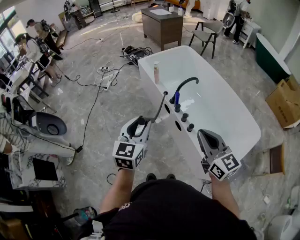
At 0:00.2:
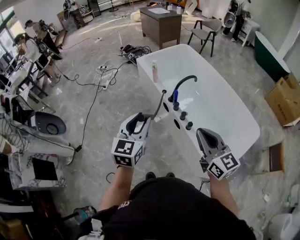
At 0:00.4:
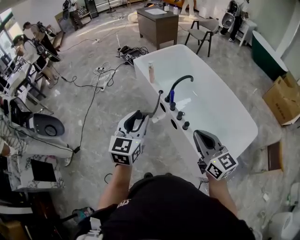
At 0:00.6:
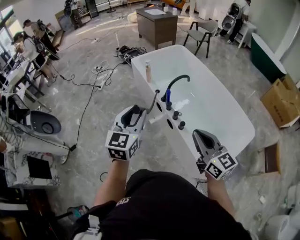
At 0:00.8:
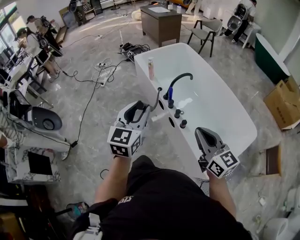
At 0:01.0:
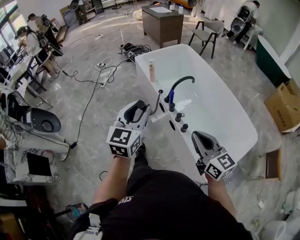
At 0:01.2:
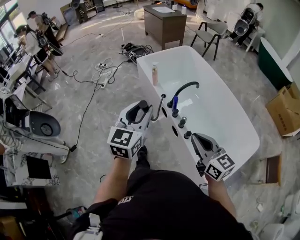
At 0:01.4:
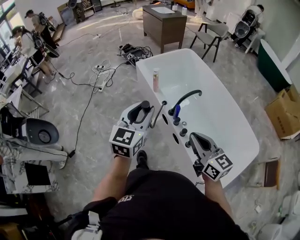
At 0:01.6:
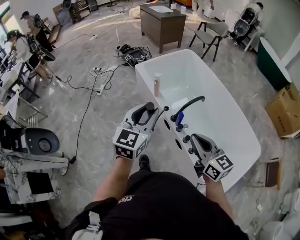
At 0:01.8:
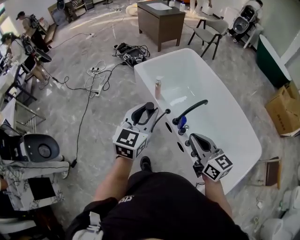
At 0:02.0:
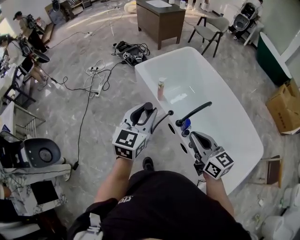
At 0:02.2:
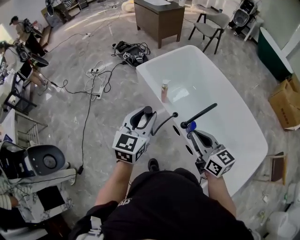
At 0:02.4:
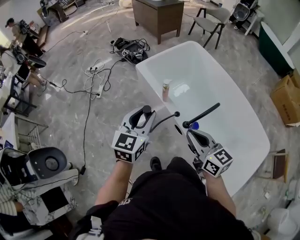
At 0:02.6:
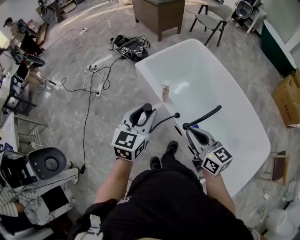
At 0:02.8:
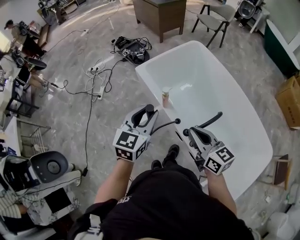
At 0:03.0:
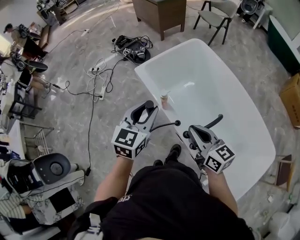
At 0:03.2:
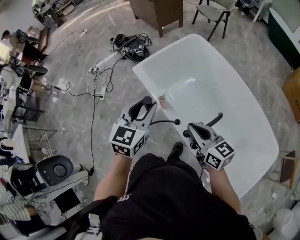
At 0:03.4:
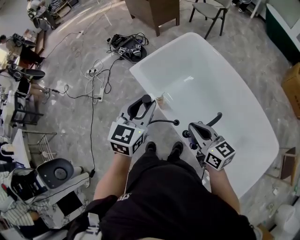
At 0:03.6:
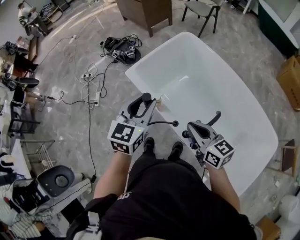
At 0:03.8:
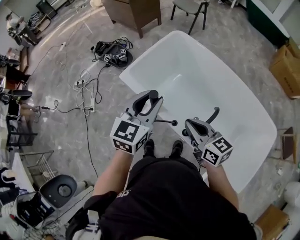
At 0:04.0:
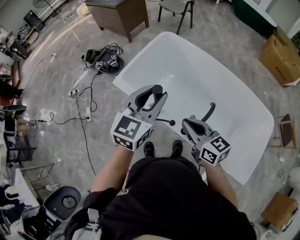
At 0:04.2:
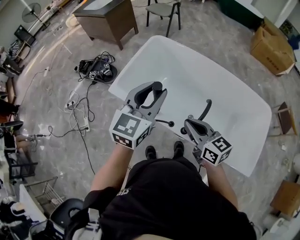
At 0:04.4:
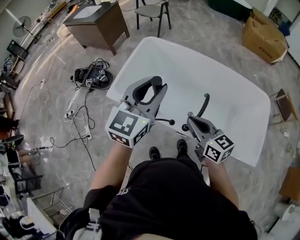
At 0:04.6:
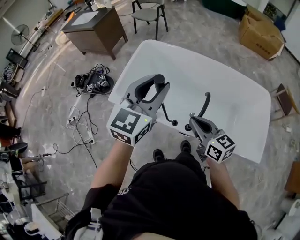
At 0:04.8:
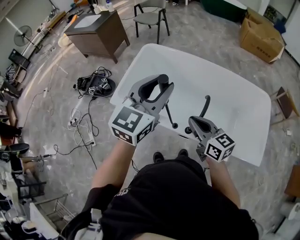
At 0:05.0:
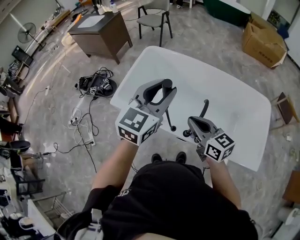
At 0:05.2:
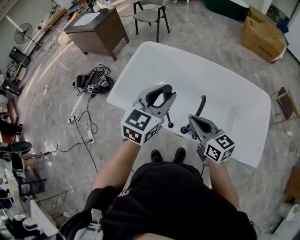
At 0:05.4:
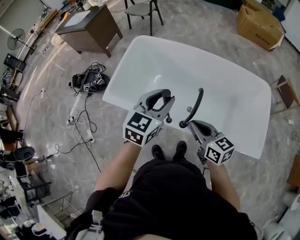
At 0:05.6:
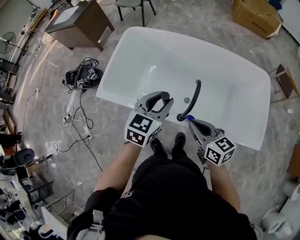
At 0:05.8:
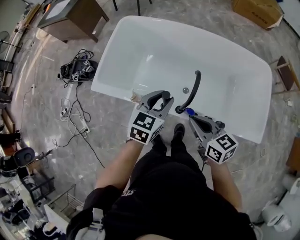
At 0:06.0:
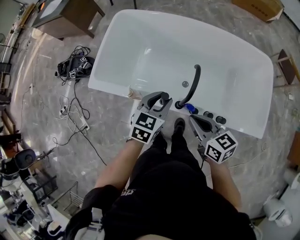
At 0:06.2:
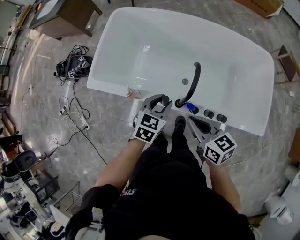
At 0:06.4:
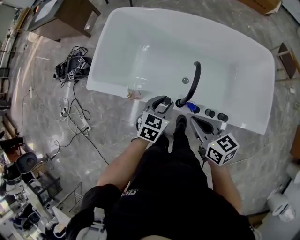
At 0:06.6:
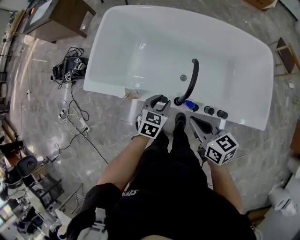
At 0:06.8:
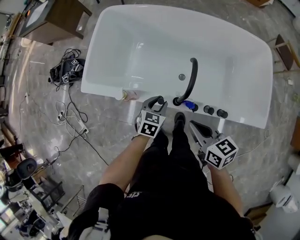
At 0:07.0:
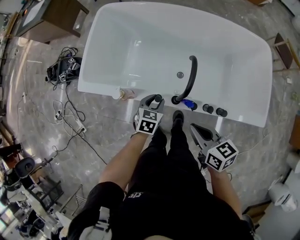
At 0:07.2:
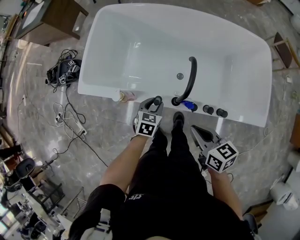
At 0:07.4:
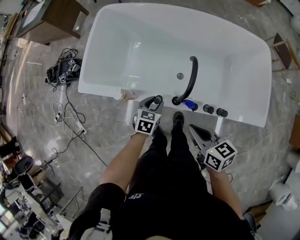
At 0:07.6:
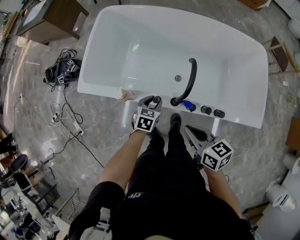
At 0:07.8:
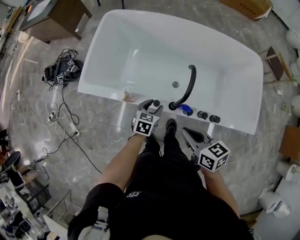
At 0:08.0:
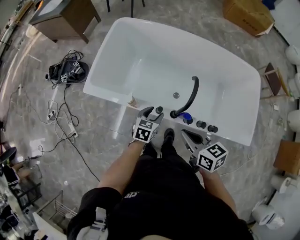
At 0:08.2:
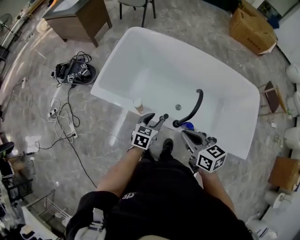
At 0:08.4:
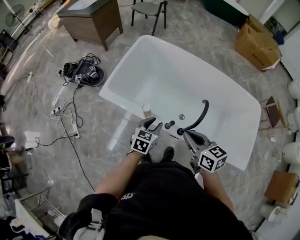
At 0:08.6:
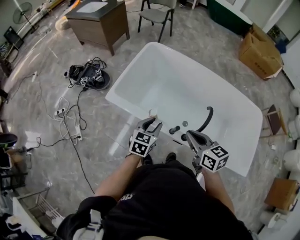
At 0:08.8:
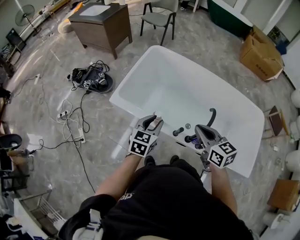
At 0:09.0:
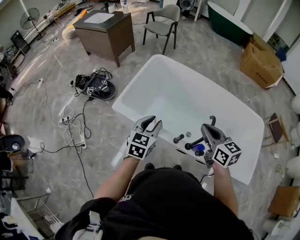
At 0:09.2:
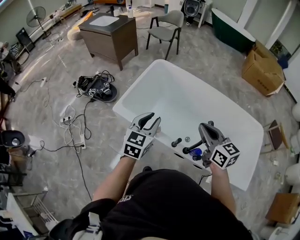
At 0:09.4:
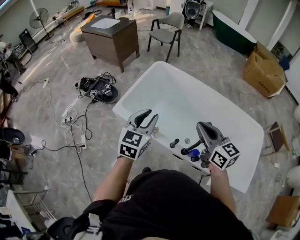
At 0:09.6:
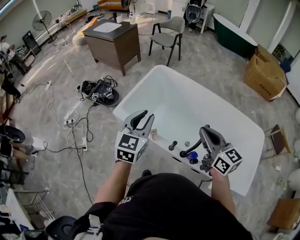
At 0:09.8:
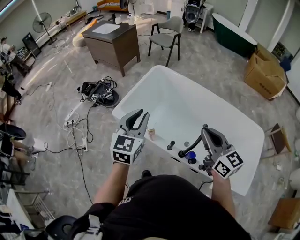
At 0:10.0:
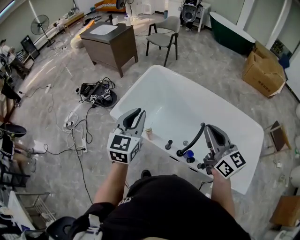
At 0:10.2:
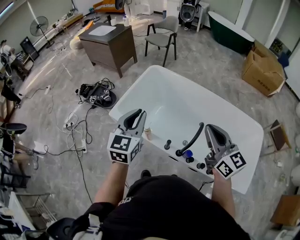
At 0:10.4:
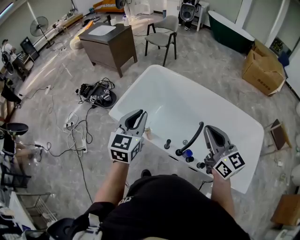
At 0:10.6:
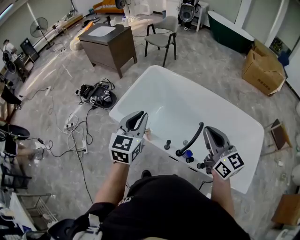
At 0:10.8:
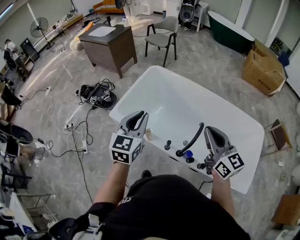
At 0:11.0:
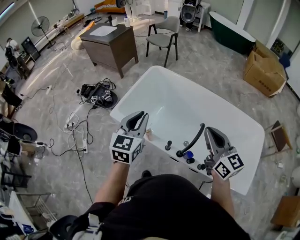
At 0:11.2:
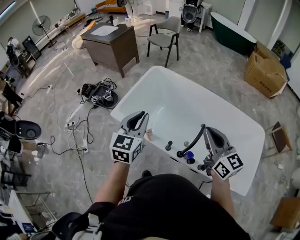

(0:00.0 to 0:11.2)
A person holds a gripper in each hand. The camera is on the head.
0:00.0 - 0:01.6: Both grippers travel together forward, about 25 cm.
0:01.6 - 0:03.2: The two grippers go approximately 30 cm forward.
0:03.2 - 0:04.8: The left gripper moves upward, some 10 cm, and rotates about 40 degrees. Meanwhile the right gripper turns by some 30 degrees.
0:04.8 - 0:06.4: The left gripper shifts roughly 35 cm downward, and tilts its fingers approximately 40 degrees downward; the right gripper is displaced downward and to the right by approximately 15 cm.
0:06.4 - 0:08.0: The left gripper goes roughly 10 cm downward and to the left, and opens its fingers. Meanwhile the right gripper shifts about 5 cm to the left.
0:08.0 - 0:09.6: The left gripper heads upward and to the left, covering about 40 cm, swivels some 40 degrees, and closes up. Meanwhile the right gripper travels upward and forward by roughly 20 cm, and turns by about 30 degrees.
0:09.6 - 0:11.2: The right gripper shifts approximately 5 cm to the right.

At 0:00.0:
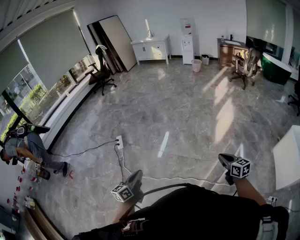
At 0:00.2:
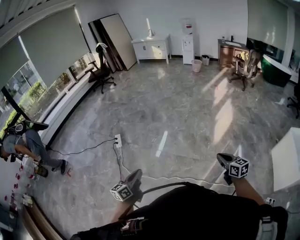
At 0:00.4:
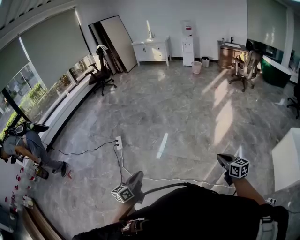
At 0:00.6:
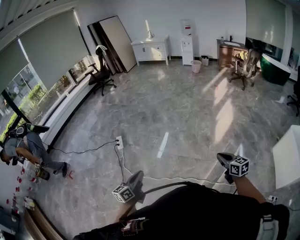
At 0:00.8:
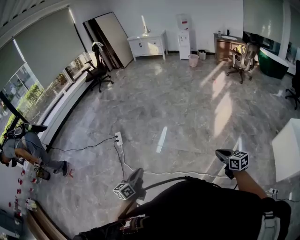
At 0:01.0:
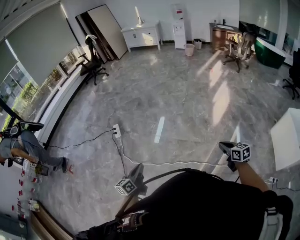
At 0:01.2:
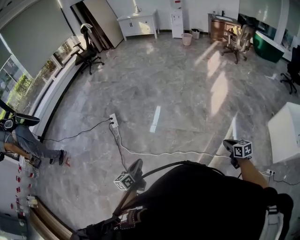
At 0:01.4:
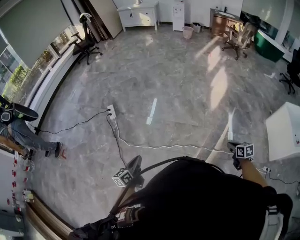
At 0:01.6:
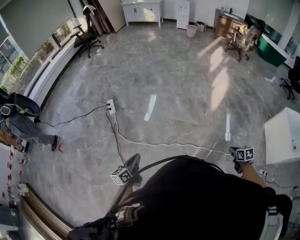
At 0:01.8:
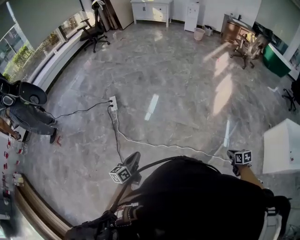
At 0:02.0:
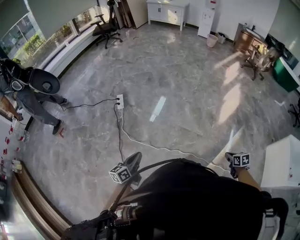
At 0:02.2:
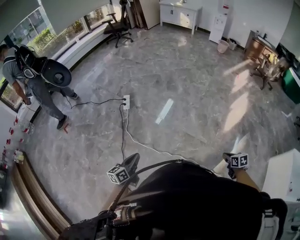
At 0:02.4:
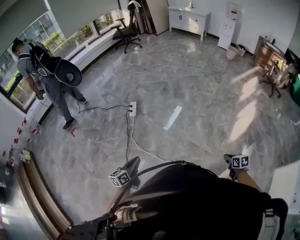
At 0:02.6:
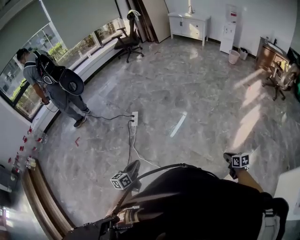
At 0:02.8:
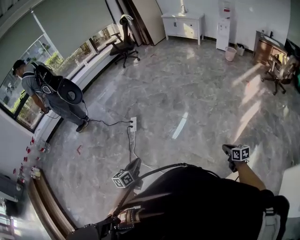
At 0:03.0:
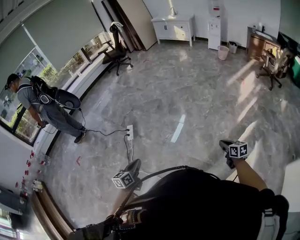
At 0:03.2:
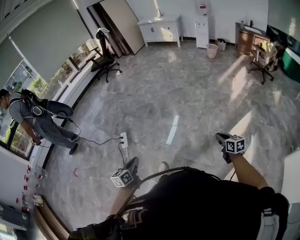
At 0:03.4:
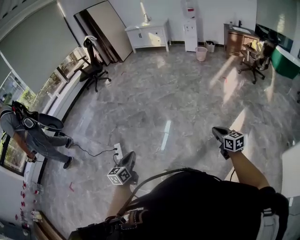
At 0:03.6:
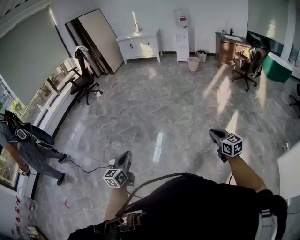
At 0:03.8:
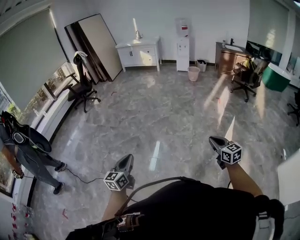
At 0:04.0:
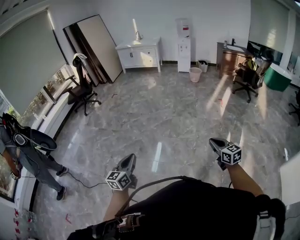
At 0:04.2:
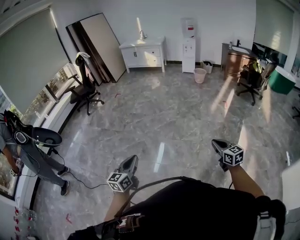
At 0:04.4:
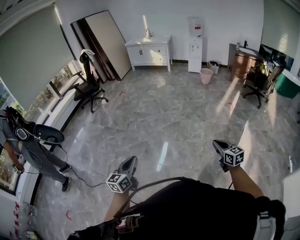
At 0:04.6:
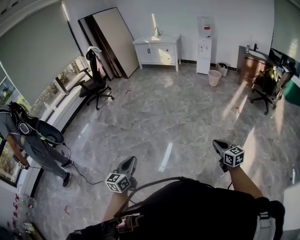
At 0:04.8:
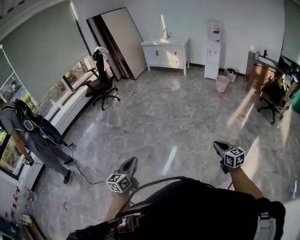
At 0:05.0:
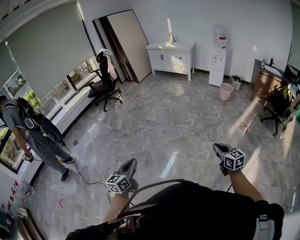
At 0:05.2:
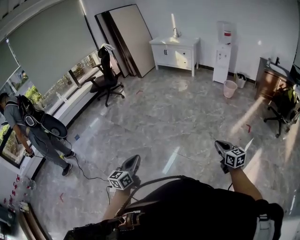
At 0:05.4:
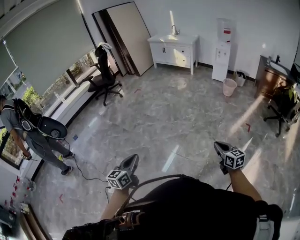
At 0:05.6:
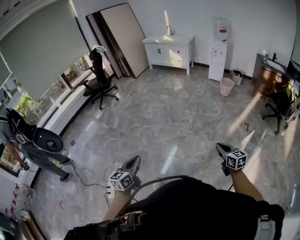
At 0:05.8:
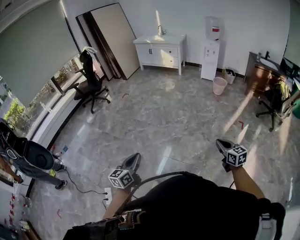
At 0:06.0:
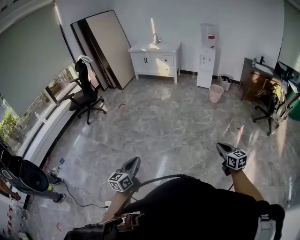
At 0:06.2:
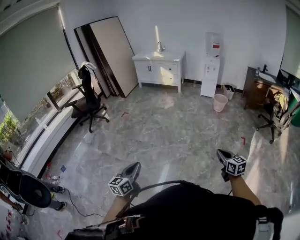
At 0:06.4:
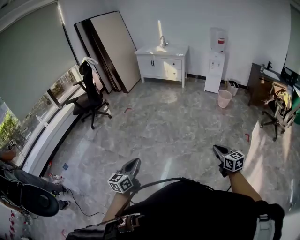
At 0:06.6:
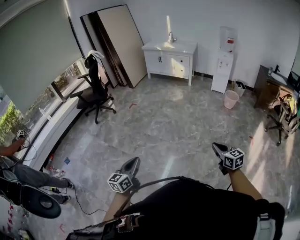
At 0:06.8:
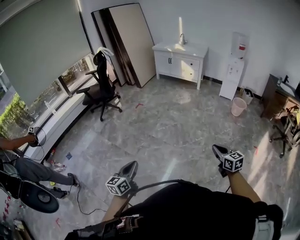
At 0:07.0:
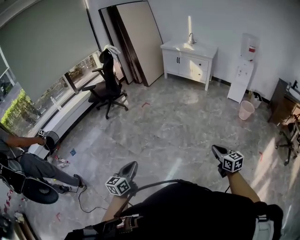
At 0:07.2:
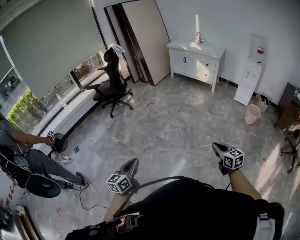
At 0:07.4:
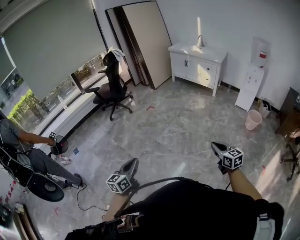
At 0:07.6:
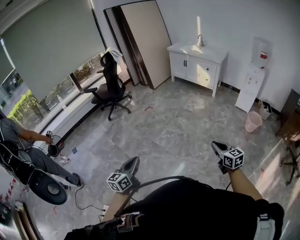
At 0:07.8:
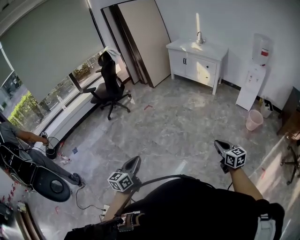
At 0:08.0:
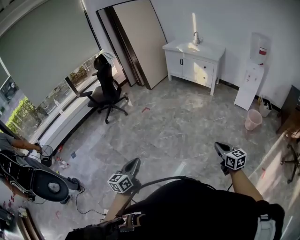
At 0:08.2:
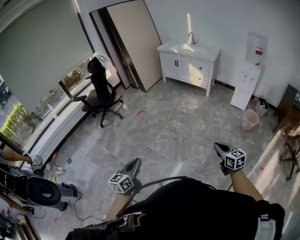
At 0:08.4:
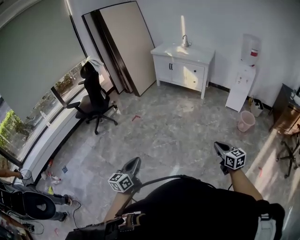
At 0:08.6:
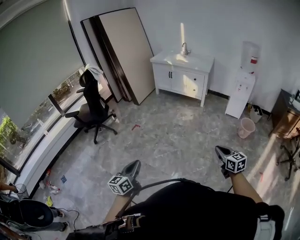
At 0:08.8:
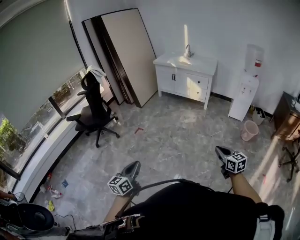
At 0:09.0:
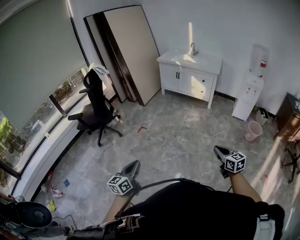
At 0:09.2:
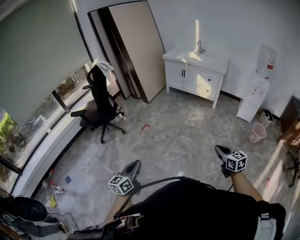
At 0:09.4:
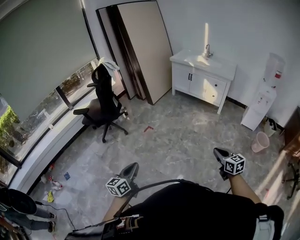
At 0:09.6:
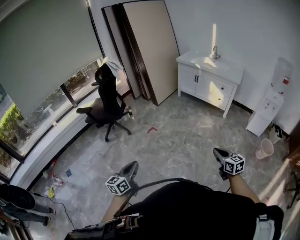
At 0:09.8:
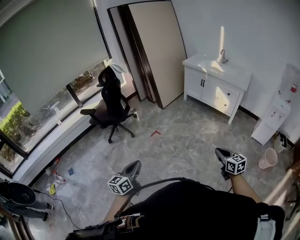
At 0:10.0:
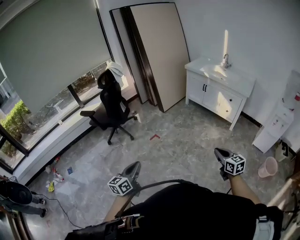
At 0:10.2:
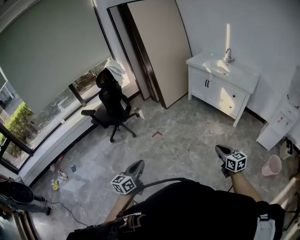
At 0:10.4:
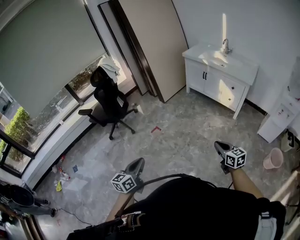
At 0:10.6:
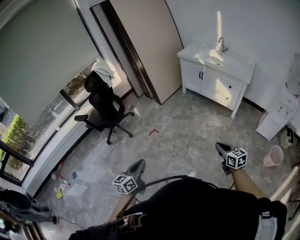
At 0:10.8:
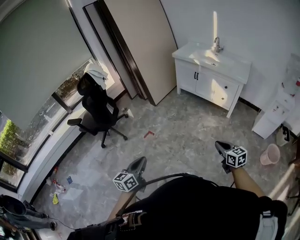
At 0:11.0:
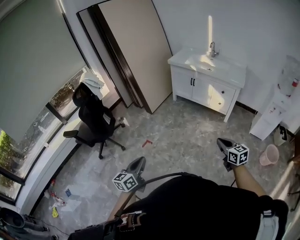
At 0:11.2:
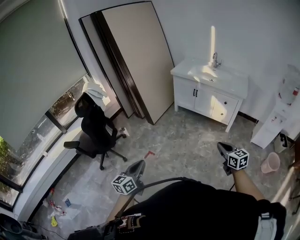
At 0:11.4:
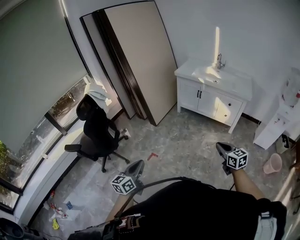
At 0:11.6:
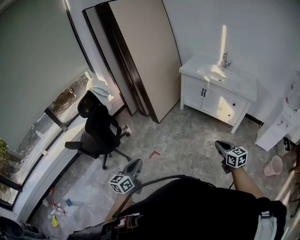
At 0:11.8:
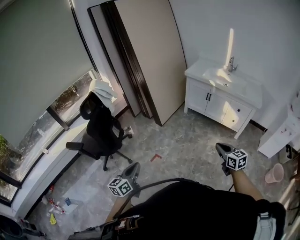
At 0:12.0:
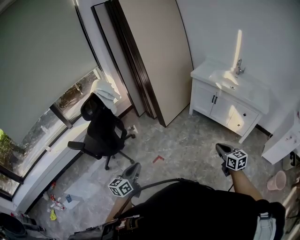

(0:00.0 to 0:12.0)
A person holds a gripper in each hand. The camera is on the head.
0:00.0 - 0:01.6: The left gripper shifts some 20 cm to the left and downward. Meanwhile the right gripper is displaced downward and backward by some 20 cm, and tilts its fingers roughly 30 degrees downward.
0:01.6 - 0:03.0: The right gripper heads forward, covering roughly 50 cm, and rotates some 30 degrees. Meanwhile the left gripper heads forward and to the right, covering roughly 30 cm.
0:03.0 - 0:04.4: The two grippers travel together, forward, about 50 cm. The right gripper changes its angle by roughly 20 degrees, while the left gripper rotates some 20 degrees.
0:04.4 - 0:06.0: The two grippers travel together, forward, roughly 40 cm.
0:06.0 - 0:07.6: Both grippers move forward, about 40 cm. The right gripper swivels roughly 20 degrees.
0:07.6 - 0:09.0: The two grippers go some 35 cm forward and to the left.
0:09.0 - 0:10.4: The left gripper travels forward and to the right by approximately 30 cm. Meanwhile the right gripper is displaced forward by approximately 35 cm.
0:10.4 - 0:12.0: The pair of grippers is taken forward and to the left, roughly 40 cm.
